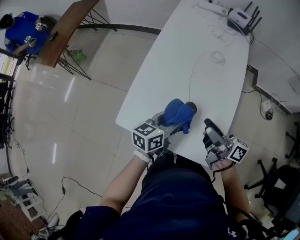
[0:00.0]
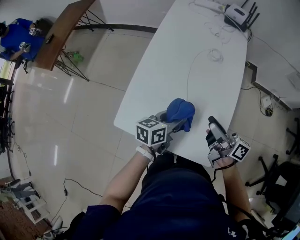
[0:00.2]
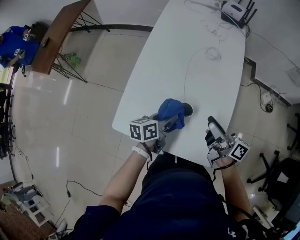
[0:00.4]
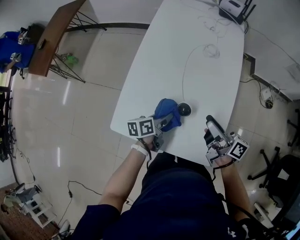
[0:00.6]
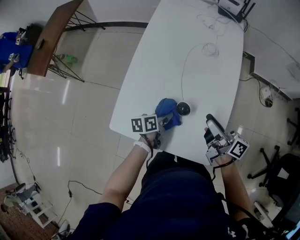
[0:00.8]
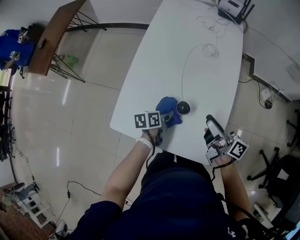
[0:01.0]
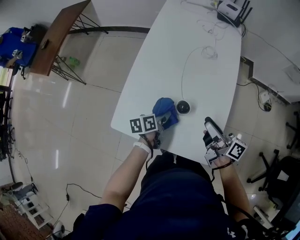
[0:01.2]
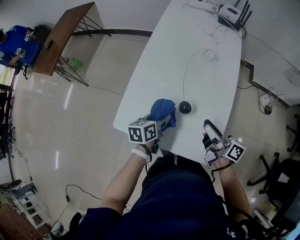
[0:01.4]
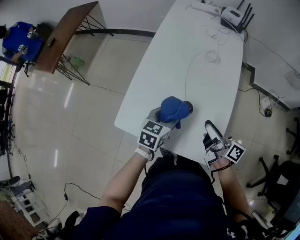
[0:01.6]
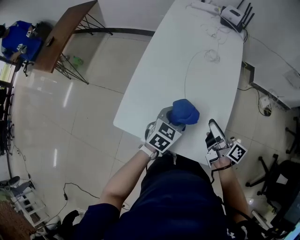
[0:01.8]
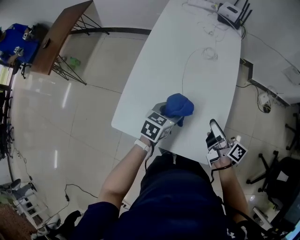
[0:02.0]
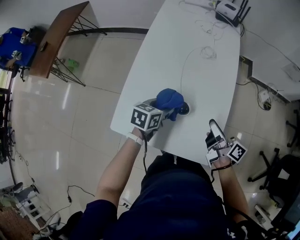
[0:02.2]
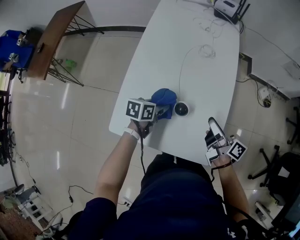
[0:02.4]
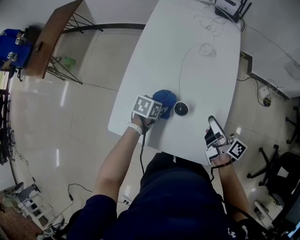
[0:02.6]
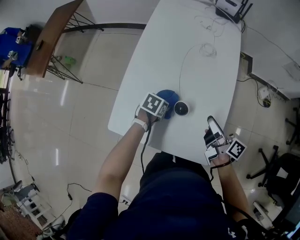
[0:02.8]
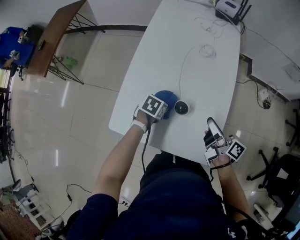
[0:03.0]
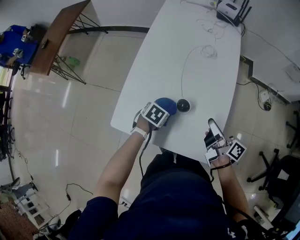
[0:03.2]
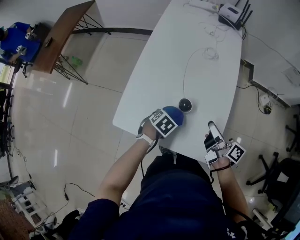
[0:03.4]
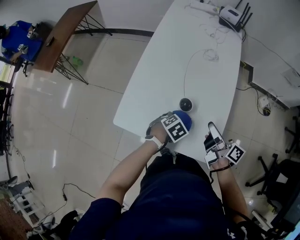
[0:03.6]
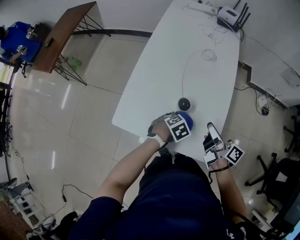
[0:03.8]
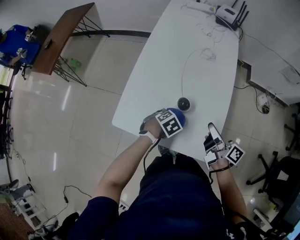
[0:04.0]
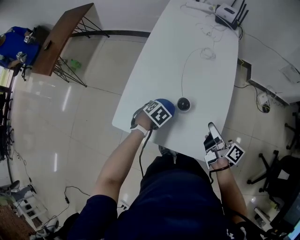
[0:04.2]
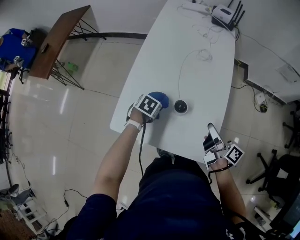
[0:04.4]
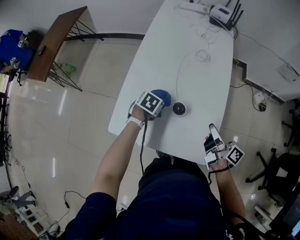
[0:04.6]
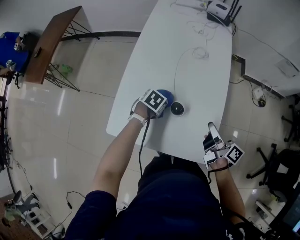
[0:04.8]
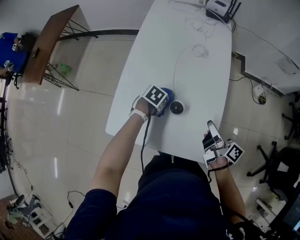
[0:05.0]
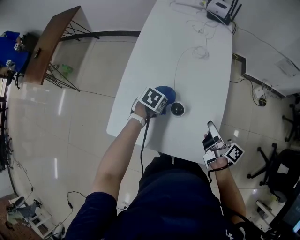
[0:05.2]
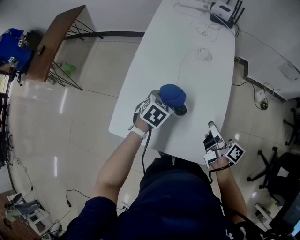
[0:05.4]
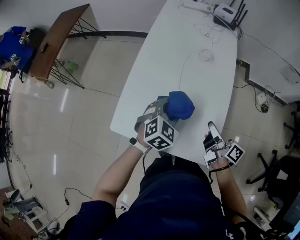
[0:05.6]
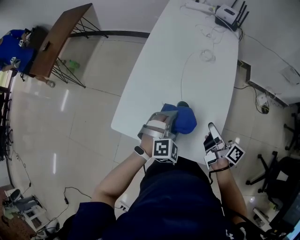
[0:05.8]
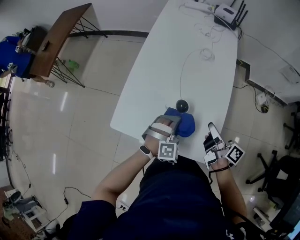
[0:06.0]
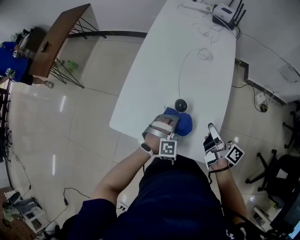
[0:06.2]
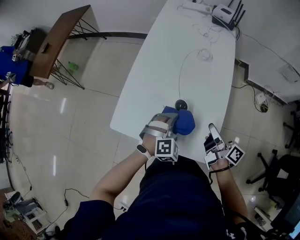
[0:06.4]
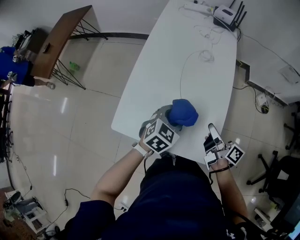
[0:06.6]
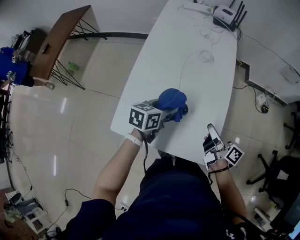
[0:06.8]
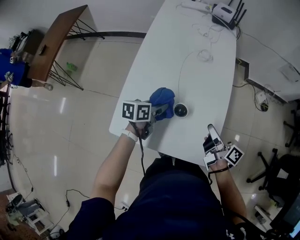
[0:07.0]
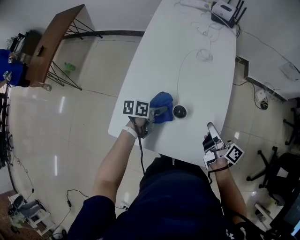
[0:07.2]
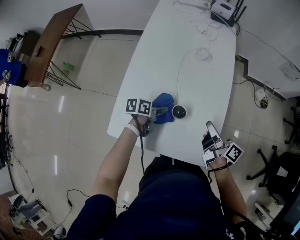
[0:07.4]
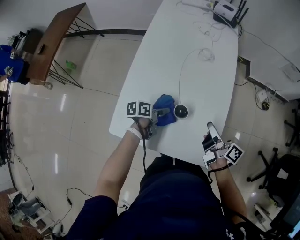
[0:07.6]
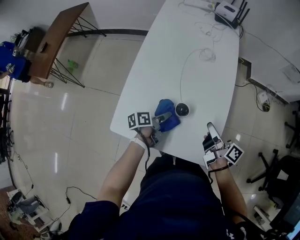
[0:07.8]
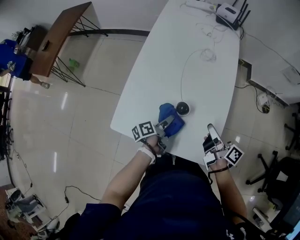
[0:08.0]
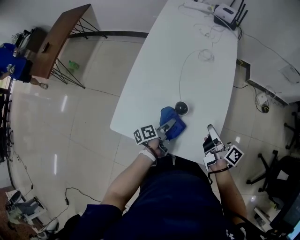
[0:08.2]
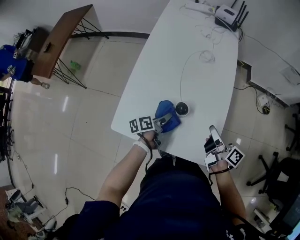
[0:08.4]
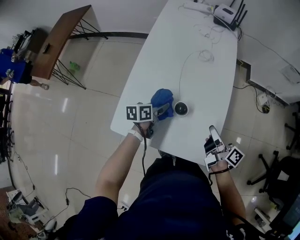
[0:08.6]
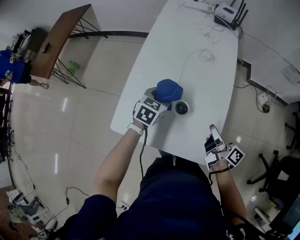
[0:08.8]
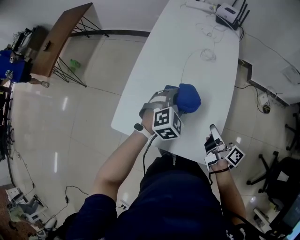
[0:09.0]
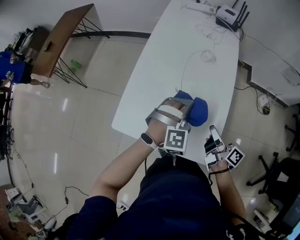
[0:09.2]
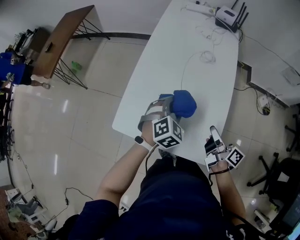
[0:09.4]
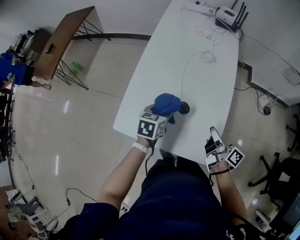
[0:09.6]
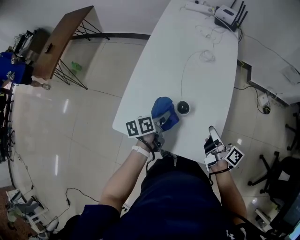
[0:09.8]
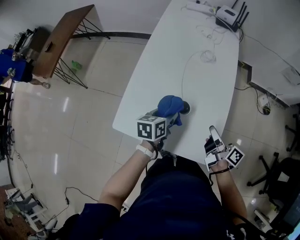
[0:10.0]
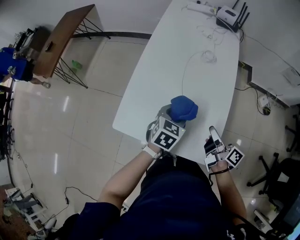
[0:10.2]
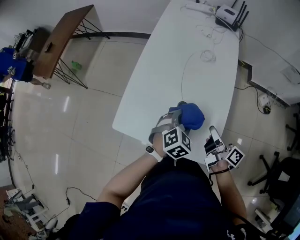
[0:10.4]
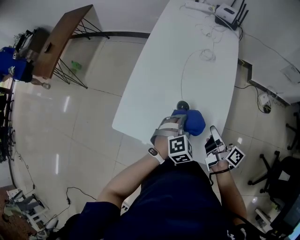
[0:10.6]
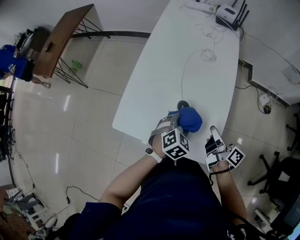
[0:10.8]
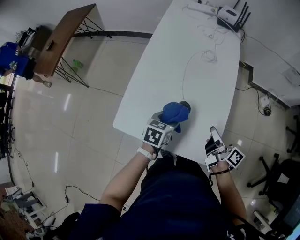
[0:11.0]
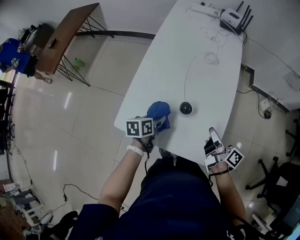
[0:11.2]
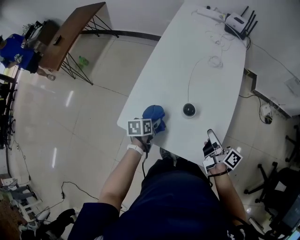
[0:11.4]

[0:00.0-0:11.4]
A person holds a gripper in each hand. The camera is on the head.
0.0 to 1.4 s: The left gripper goes about 10 cm downward, and swivels roughly 20 degrees.
1.4 to 2.8 s: The left gripper travels downward by about 10 cm, and turns by about 40 degrees.
2.8 to 4.2 s: The left gripper rotates about 30 degrees.
4.2 to 5.6 s: The left gripper travels upward by roughly 15 cm, and points its fingers approximately 30 degrees further upward.
5.6 to 7.2 s: The left gripper moves up and down over about 10 cm, changing direction 2 times, and rotates around the line of its fingers by roughly 70 degrees, counterclockwise from behind.
8.6 to 10.0 s: The left gripper moves upward, approximately 5 cm, and travels to the right and back again, approximately 10 cm each way.
10.0 to 11.4 s: The left gripper travels to the left and downward by approximately 15 cm.

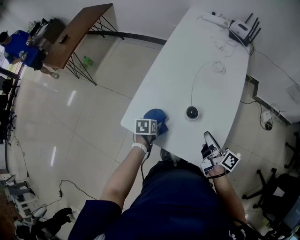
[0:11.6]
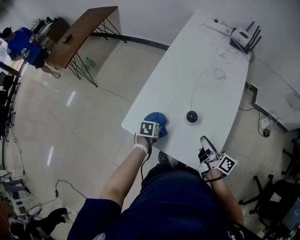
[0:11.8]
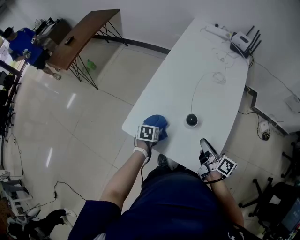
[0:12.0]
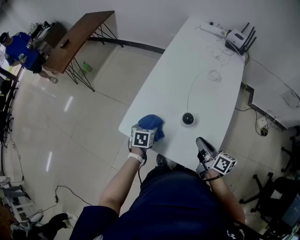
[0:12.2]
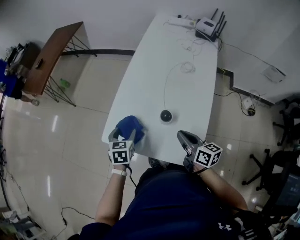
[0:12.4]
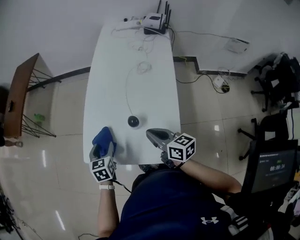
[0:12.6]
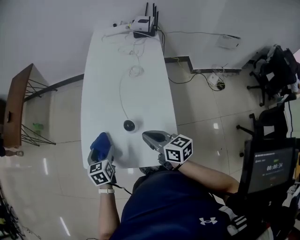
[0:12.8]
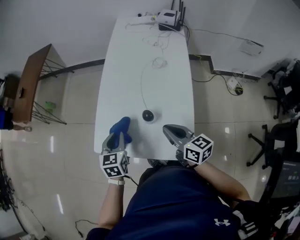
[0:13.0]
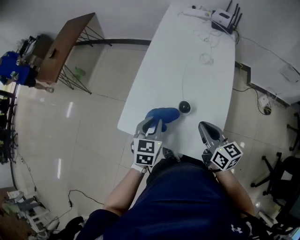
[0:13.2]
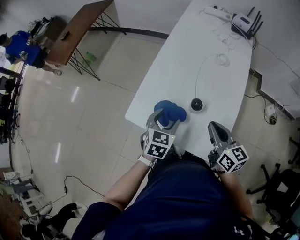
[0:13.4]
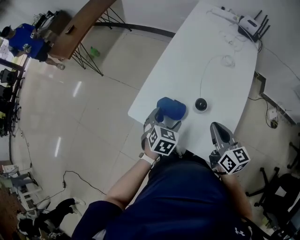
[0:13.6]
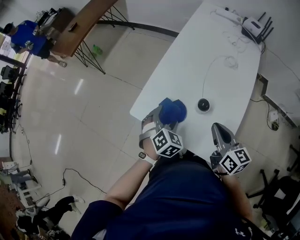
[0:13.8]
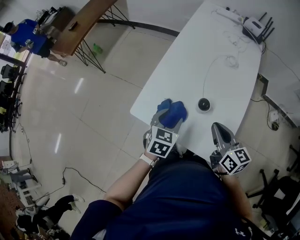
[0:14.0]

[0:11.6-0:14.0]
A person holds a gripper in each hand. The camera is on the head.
11.6 to 12.8 s: The left gripper heads upward, covering some 10 cm, and changes its angle by roughly 30 degrees. Meanwhile the right gripper swivels some 30 degrees.
12.8 to 14.0 s: The left gripper closes and opens again.

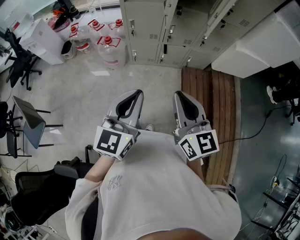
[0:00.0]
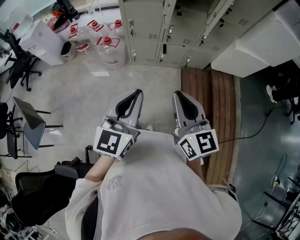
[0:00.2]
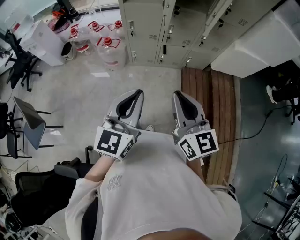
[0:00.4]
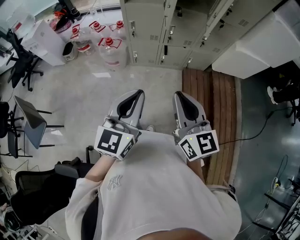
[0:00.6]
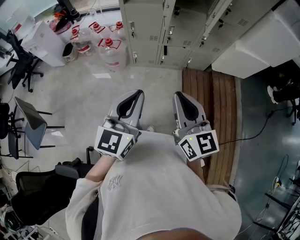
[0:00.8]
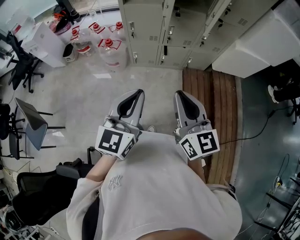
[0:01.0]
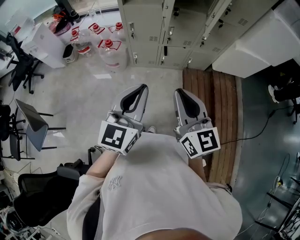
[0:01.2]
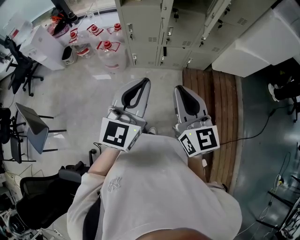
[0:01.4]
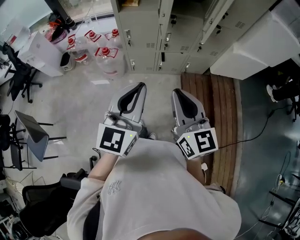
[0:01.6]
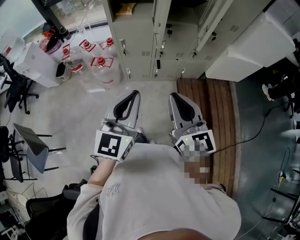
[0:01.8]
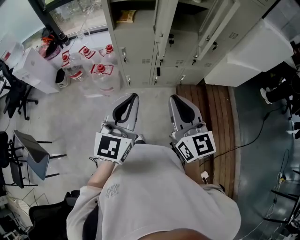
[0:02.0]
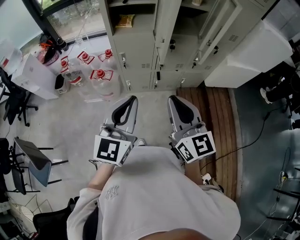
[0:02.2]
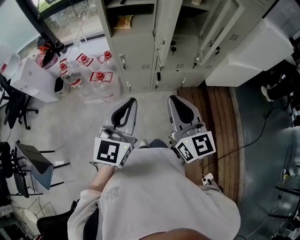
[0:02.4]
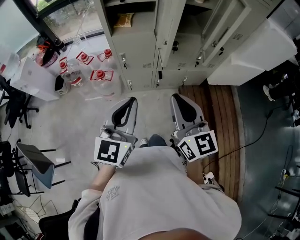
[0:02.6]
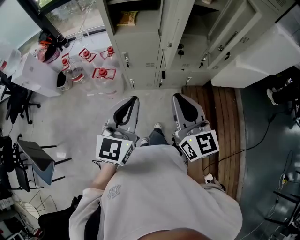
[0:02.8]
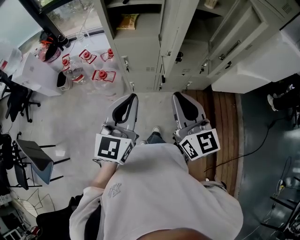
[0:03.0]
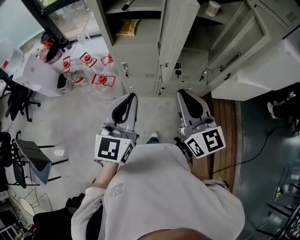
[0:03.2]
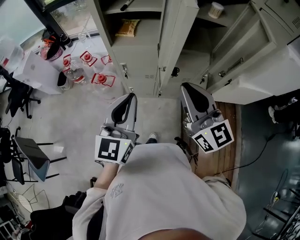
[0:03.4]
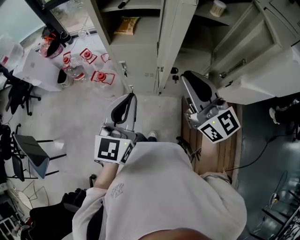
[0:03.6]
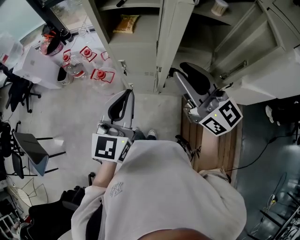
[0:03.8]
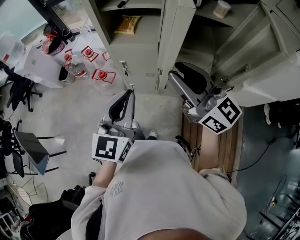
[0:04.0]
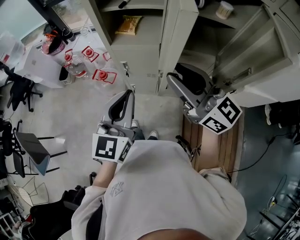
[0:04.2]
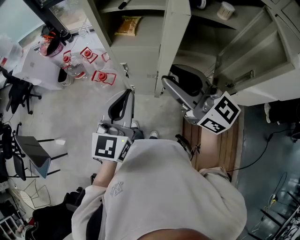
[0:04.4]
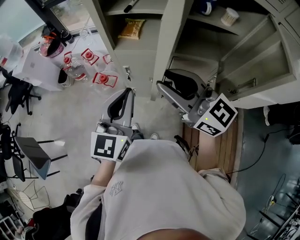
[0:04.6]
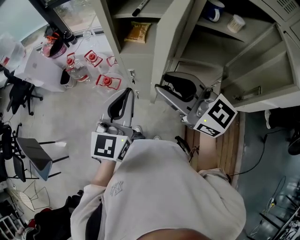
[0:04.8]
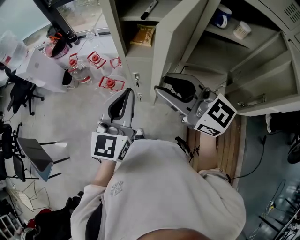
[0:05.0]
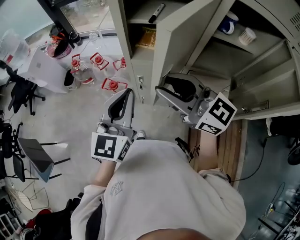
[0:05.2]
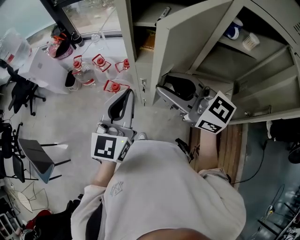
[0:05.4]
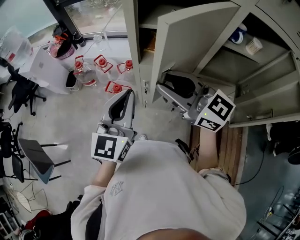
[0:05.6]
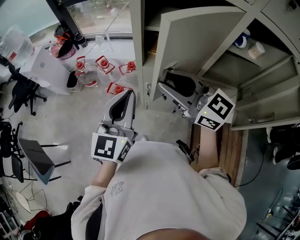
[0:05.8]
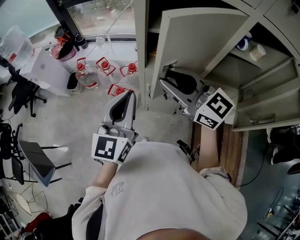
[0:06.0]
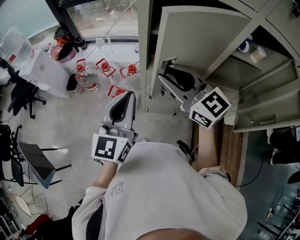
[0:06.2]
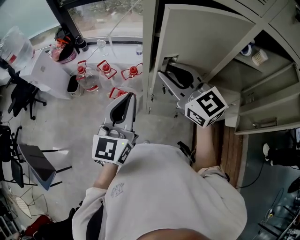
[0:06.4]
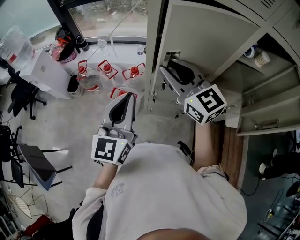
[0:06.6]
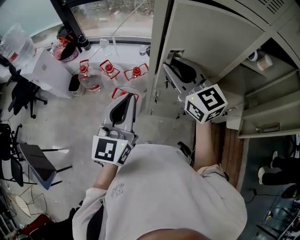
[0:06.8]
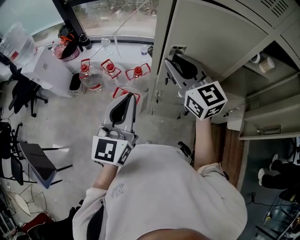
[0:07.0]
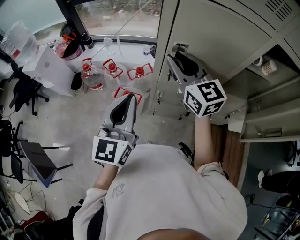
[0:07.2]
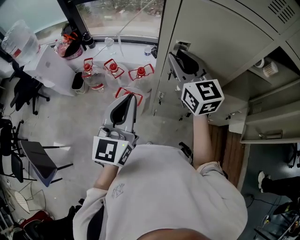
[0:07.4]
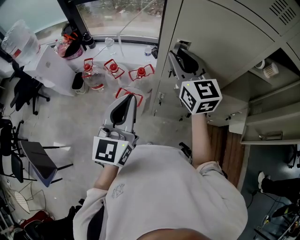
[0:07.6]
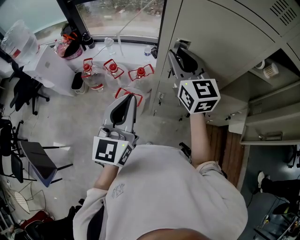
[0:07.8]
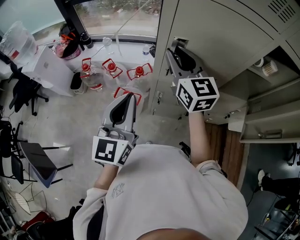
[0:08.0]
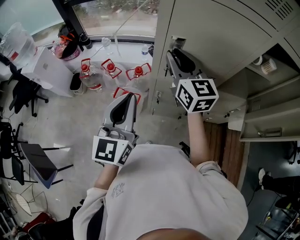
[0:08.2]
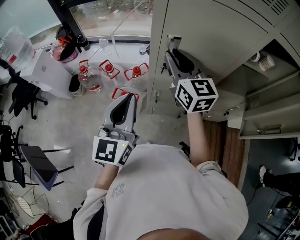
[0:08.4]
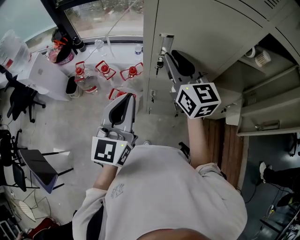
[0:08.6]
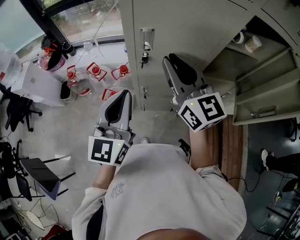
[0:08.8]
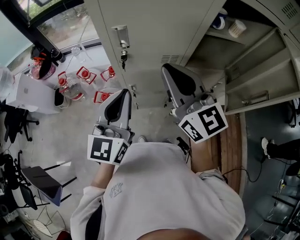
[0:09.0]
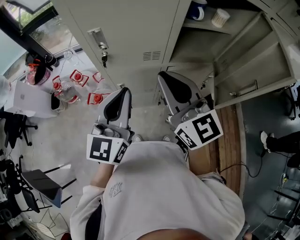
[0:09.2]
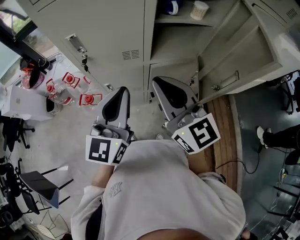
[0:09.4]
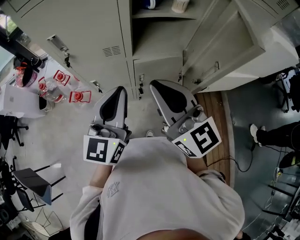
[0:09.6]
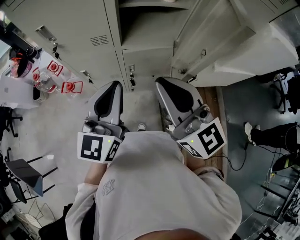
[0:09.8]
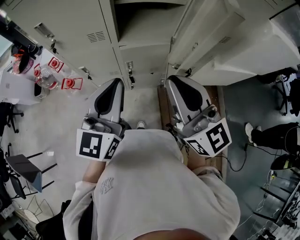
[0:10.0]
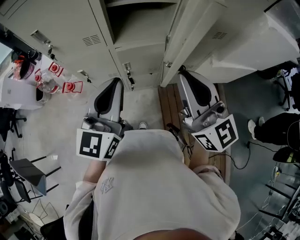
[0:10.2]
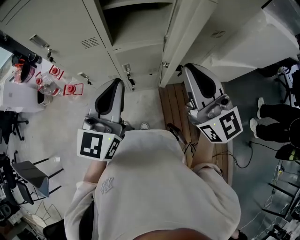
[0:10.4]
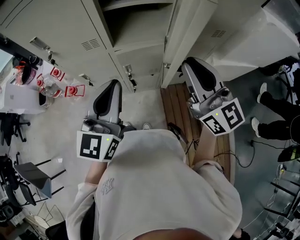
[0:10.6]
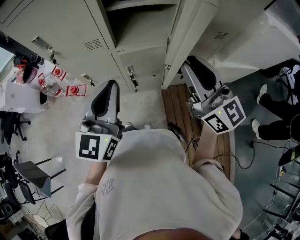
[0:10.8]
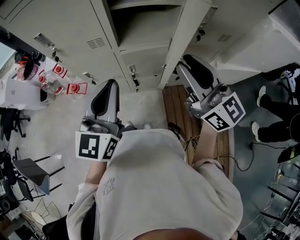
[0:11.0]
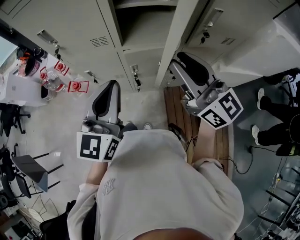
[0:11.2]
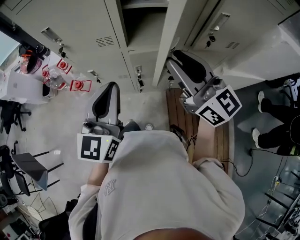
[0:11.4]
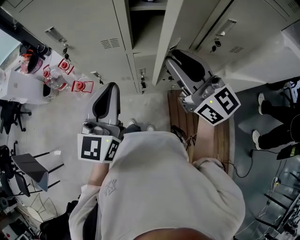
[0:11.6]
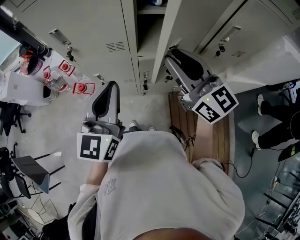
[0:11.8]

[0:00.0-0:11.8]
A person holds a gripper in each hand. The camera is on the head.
0.0 to 1.4 s: The left gripper changes place by about 5 cm.
1.4 to 3.0 s: The grippers both shift forward by some 20 cm.
3.0 to 4.4 s: The left gripper shifts roughly 10 cm forward, while the right gripper shifts roughly 15 cm forward and upward, and swivels approximately 40 degrees.
4.4 to 6.0 s: Both grippers travel together forward and to the left, about 20 cm.
6.0 to 7.4 s: The right gripper moves forward, about 15 cm, and rotates roughly 30 degrees. The left gripper moves to the left, about 5 cm.
7.4 to 8.8 s: The right gripper goes about 10 cm backward and to the right; the left gripper travels to the right by some 5 cm.
8.8 to 10.4 s: The right gripper is displaced to the right and backward by about 40 cm, while the left gripper heads to the right, covering approximately 35 cm.
10.4 to 11.8 s: The left gripper shifts about 10 cm to the left and forward, while the right gripper shifts about 15 cm forward and to the left.
